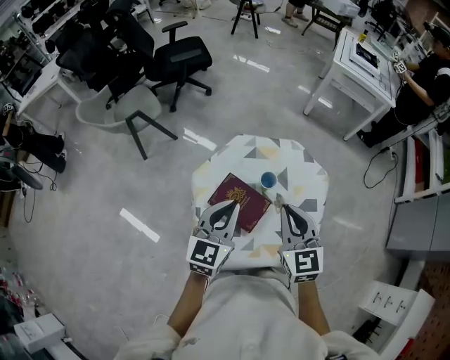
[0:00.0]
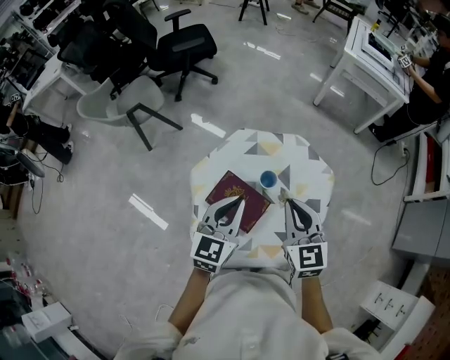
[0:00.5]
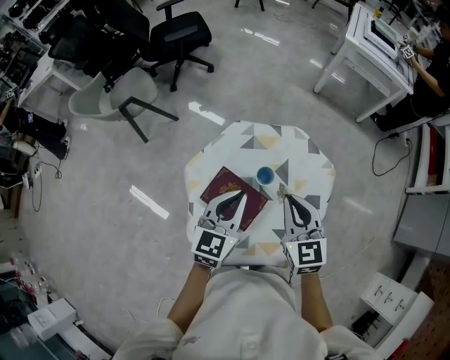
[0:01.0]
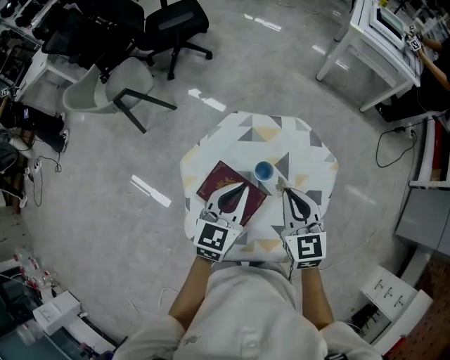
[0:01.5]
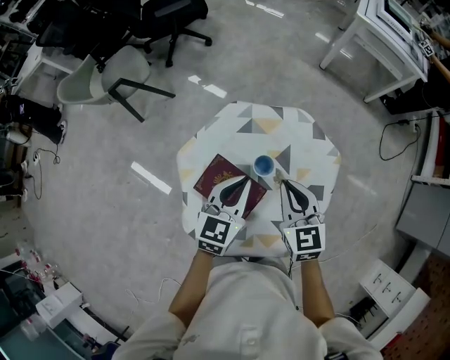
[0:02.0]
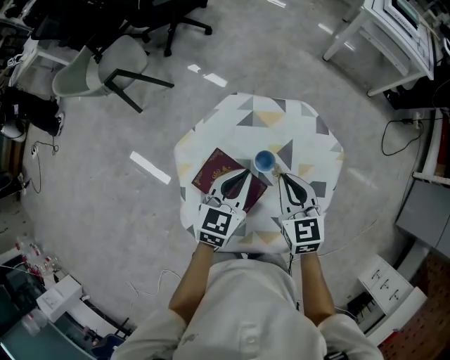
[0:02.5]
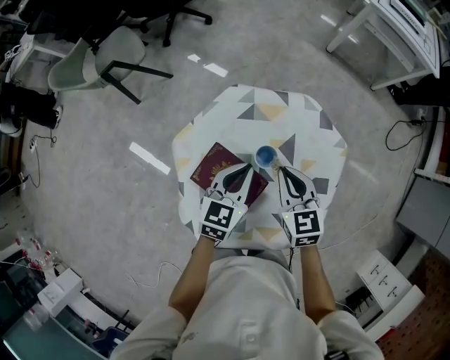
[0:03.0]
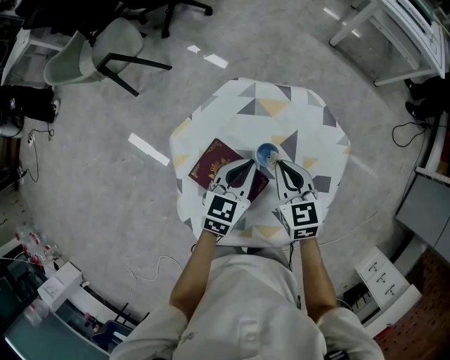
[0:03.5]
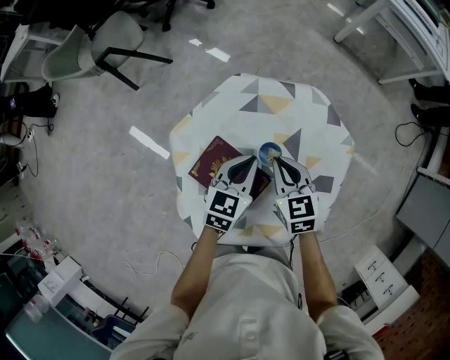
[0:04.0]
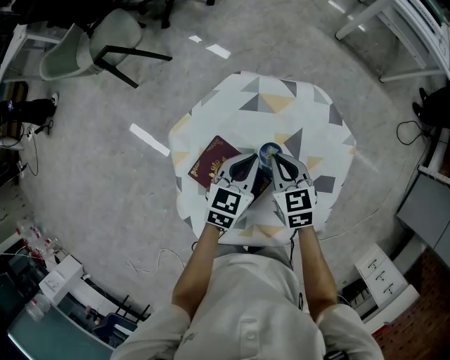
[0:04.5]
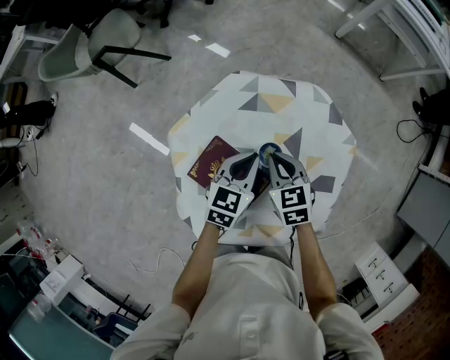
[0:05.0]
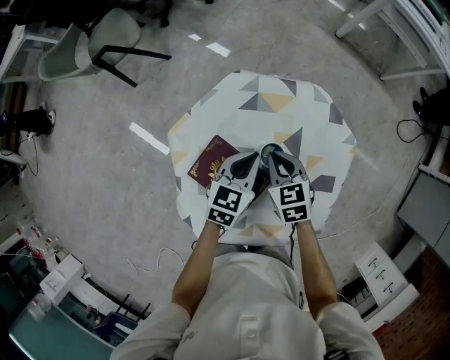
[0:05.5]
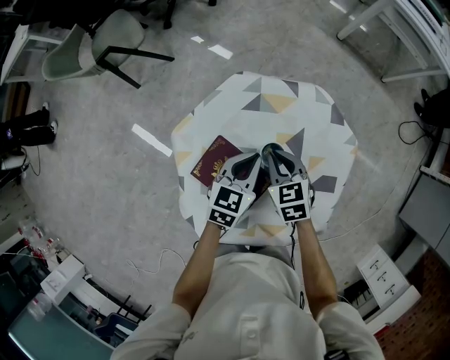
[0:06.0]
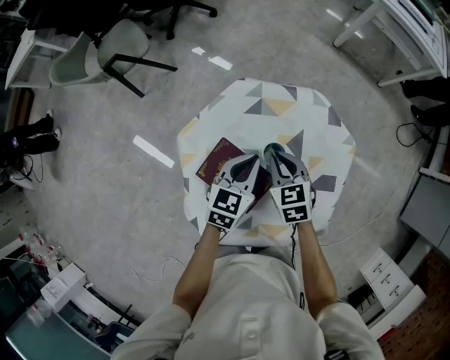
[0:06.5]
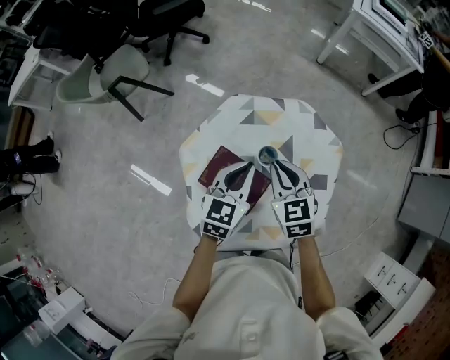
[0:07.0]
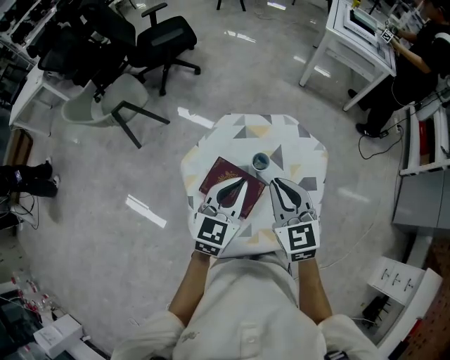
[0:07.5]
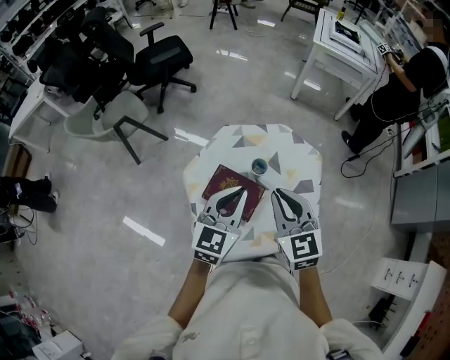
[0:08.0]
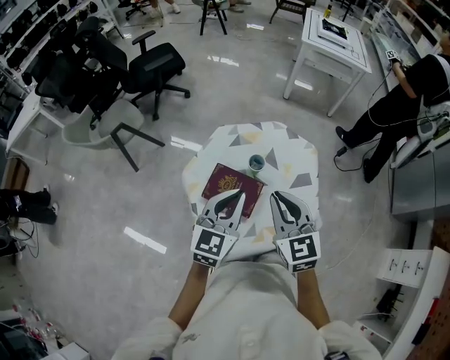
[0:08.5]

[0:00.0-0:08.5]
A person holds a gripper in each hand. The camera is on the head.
0:00.0 to 0:02.0: The right gripper is displaced downward and forward by roughly 15 cm. Meanwhile the left gripper goes some 15 cm downward, forward and to the right.
0:02.0 to 0:04.0: Both grippers move downward, roughly 10 cm.
0:04.0 to 0:06.5: There are only small adjustments of the grippers.
0:06.5 to 0:08.5: The grippers both shift upward and backward by some 30 cm. The right gripper turns by roughly 30 degrees. Meanwhile the left gripper changes its angle by about 30 degrees.

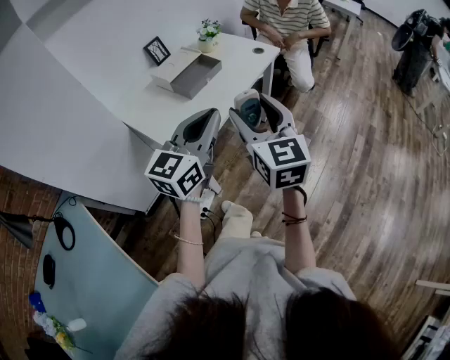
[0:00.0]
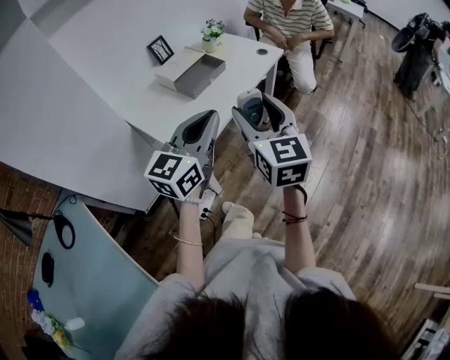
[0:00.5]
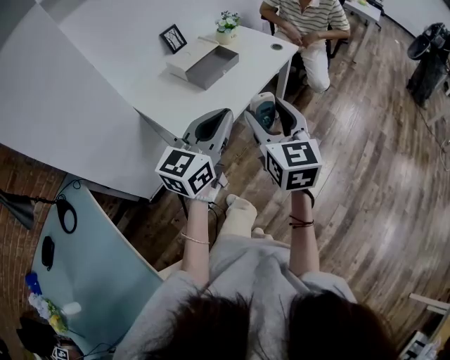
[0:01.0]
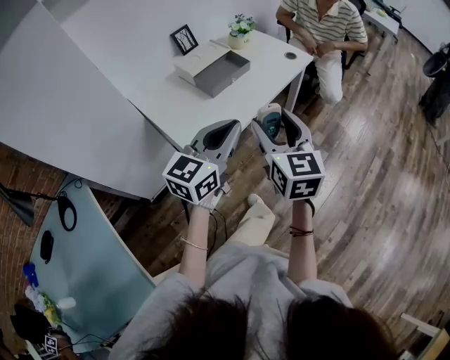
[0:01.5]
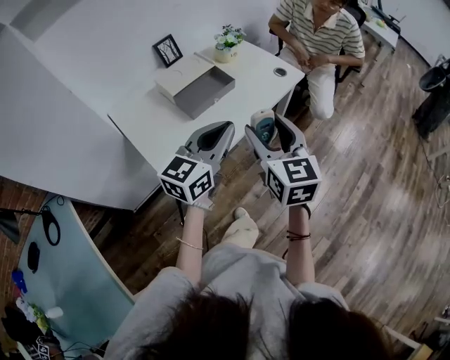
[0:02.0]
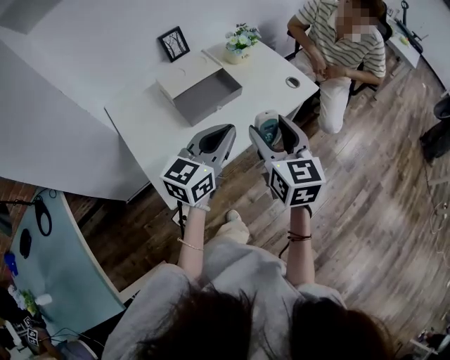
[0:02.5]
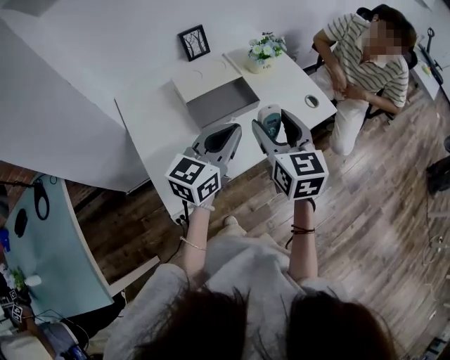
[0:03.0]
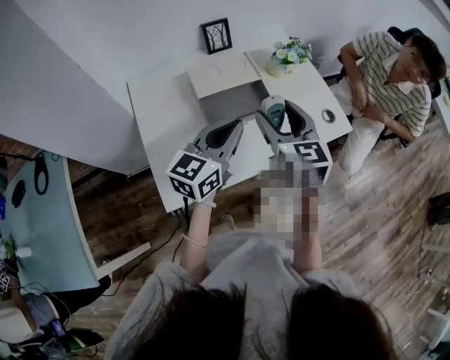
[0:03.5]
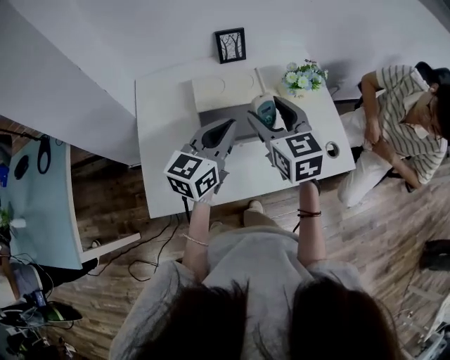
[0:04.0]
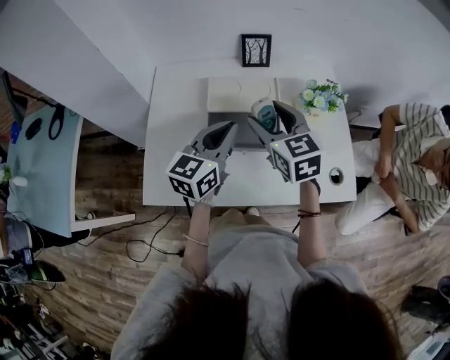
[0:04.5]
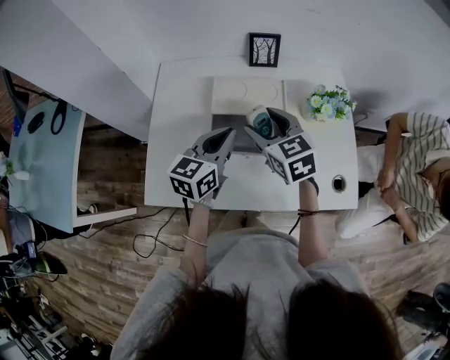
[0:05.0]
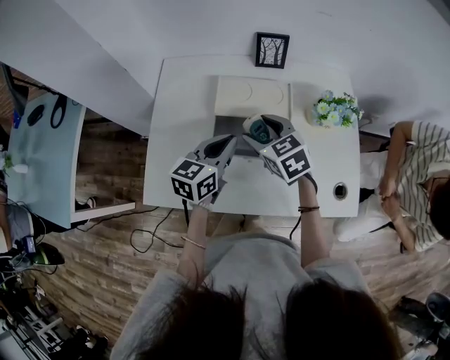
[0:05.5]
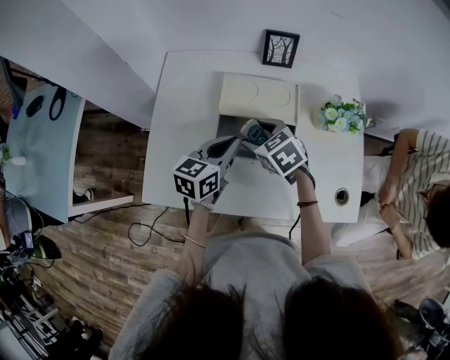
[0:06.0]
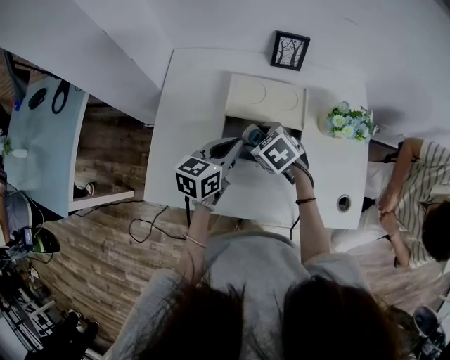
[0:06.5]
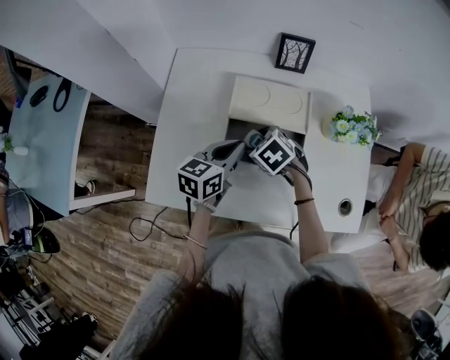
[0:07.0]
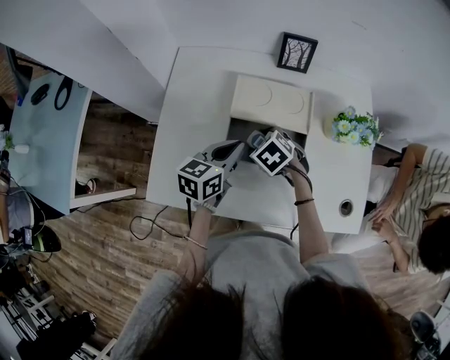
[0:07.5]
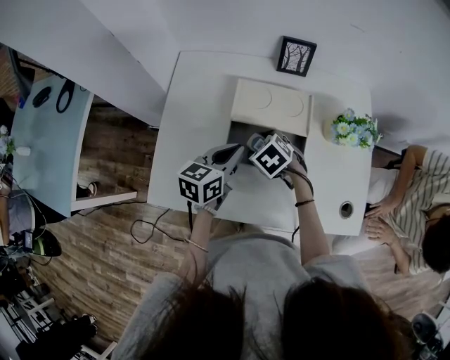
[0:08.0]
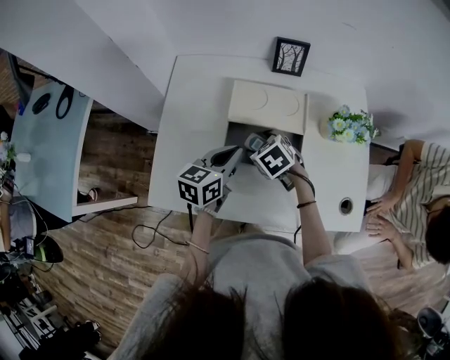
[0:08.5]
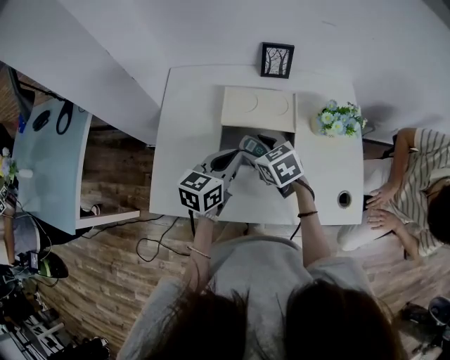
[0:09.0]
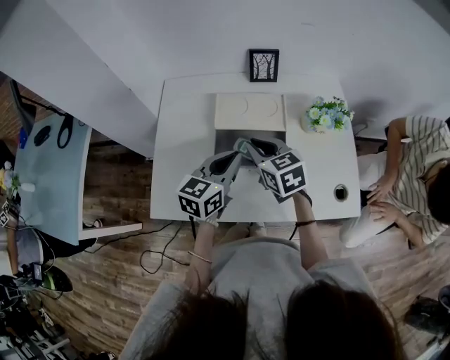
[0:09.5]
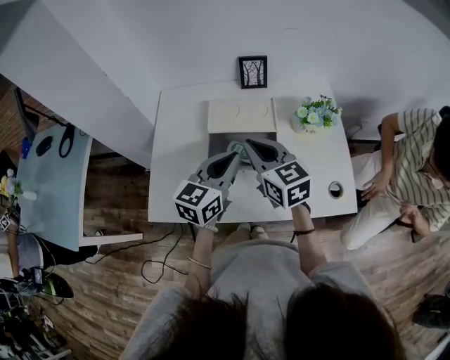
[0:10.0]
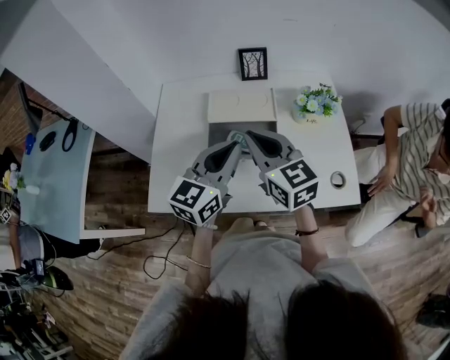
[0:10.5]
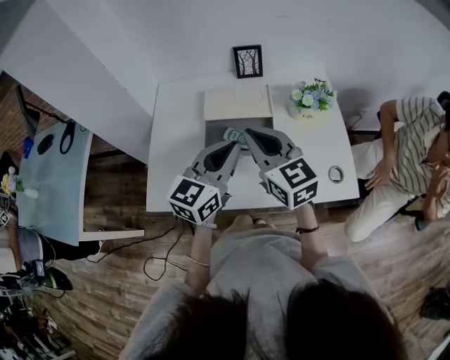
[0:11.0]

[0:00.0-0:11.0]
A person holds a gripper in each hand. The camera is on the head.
0:00.0 to 0:02.0: The grippers both shift forward by roughly 15 cm.
0:02.0 to 0:03.5: Both grippers travel together forward, approximately 20 cm. The right gripper turns by some 20 degrees. The left gripper turns by some 20 degrees.
0:03.5 to 0:05.5: The left gripper changes place by approximately 15 cm, and rotates some 30 degrees; the right gripper shifts by approximately 20 cm, and changes its angle by some 50 degrees.
0:05.5 to 0:07.5: The right gripper shifts about 10 cm downward, and changes its angle by approximately 30 degrees; the left gripper shifts by roughly 5 cm.
0:07.5 to 0:09.0: The right gripper travels upward by roughly 5 cm, and changes its angle by about 30 degrees.
0:09.0 to 0:11.0: The left gripper moves upward, backward and to the right, approximately 15 cm, and changes its angle by about 20 degrees; the right gripper is displaced upward and backward by roughly 20 cm, angles its fingers upward, by some 40 degrees, and closes its fingers.

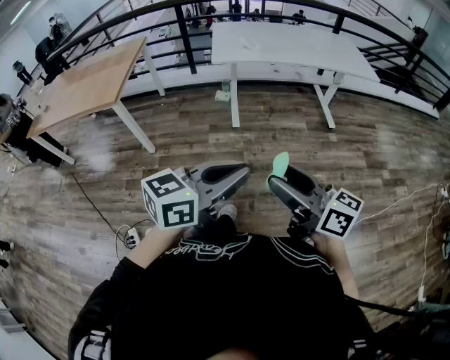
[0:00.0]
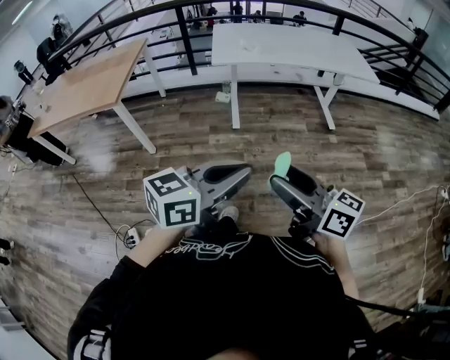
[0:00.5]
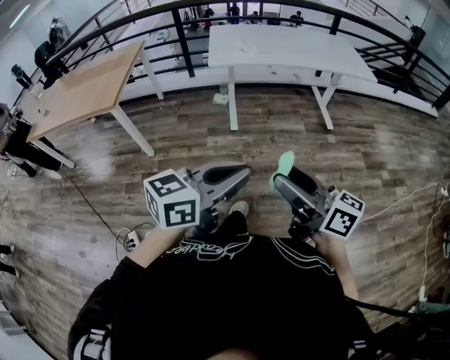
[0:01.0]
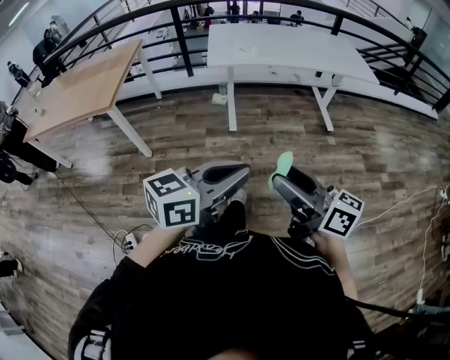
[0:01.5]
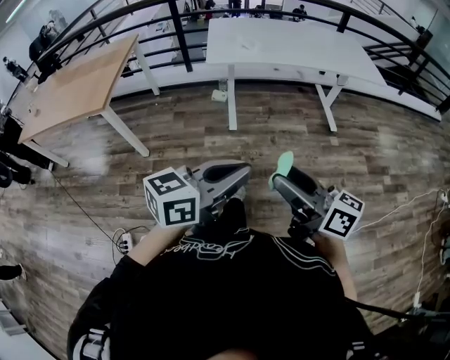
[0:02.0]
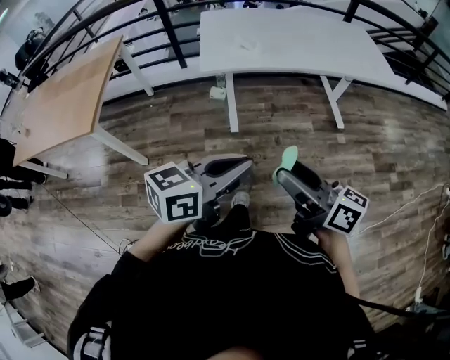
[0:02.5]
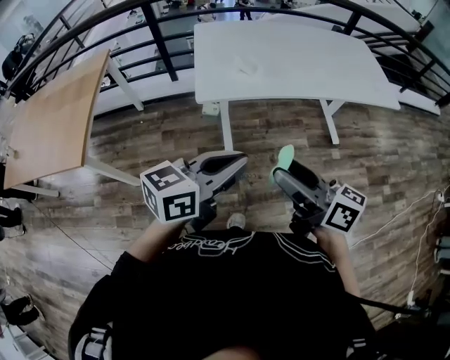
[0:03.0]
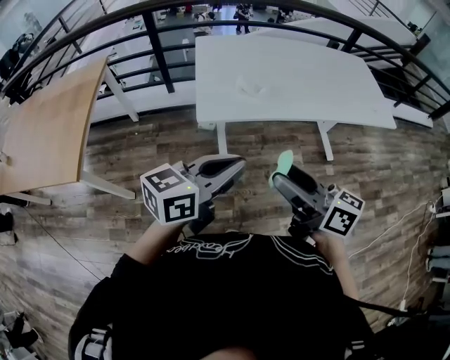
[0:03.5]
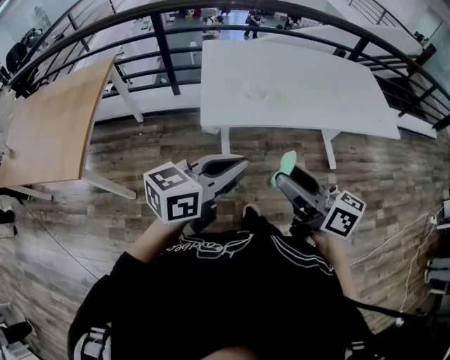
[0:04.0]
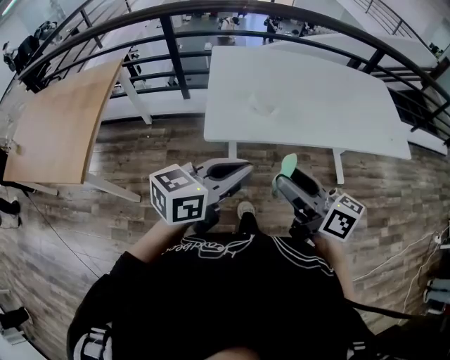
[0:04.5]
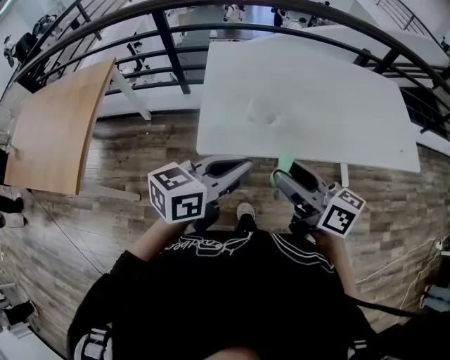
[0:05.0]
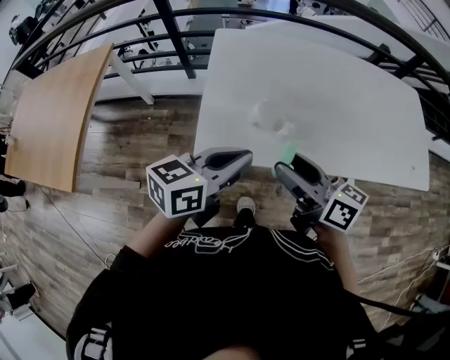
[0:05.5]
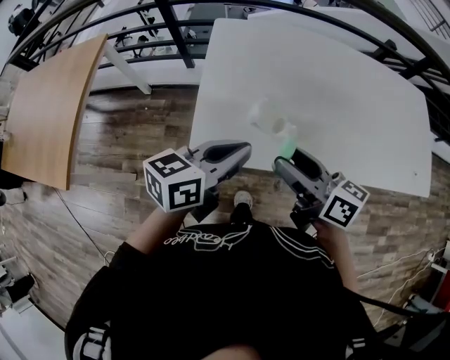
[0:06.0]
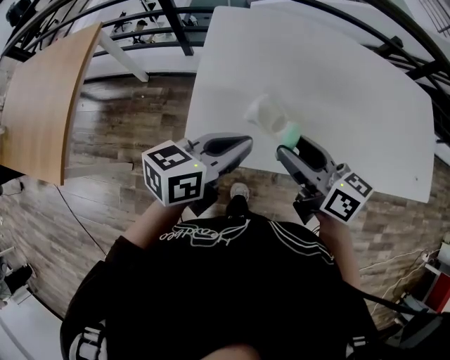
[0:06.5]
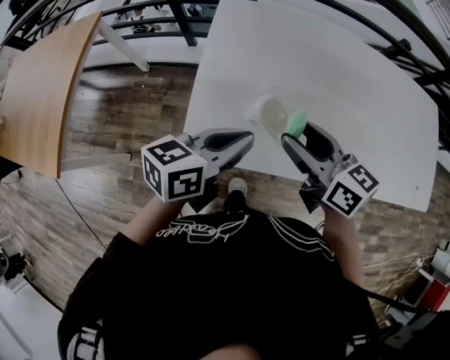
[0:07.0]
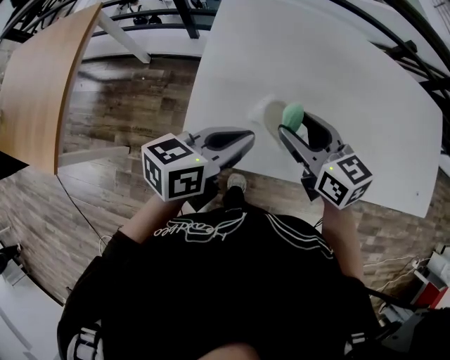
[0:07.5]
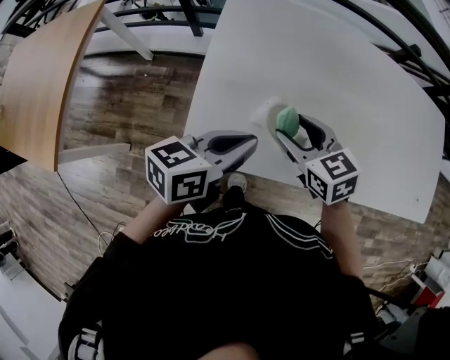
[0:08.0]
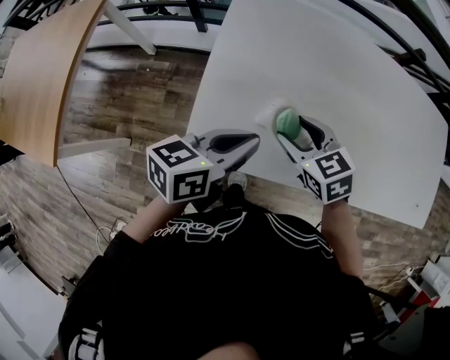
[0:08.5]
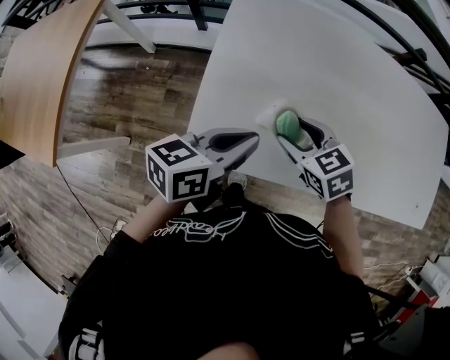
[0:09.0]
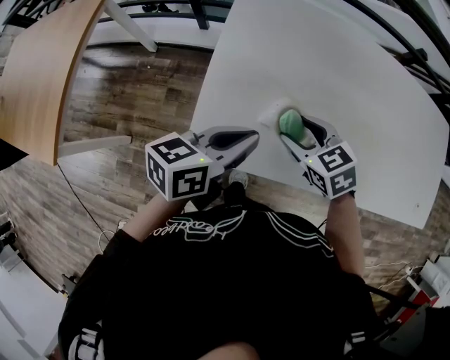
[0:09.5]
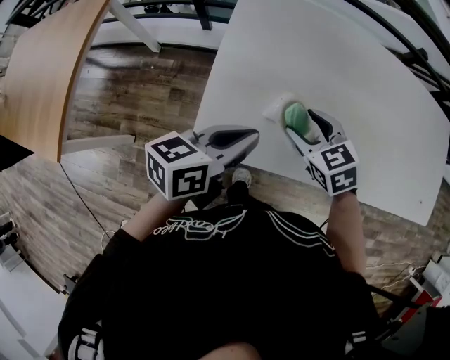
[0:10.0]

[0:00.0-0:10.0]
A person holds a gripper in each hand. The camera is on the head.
0:00.0 to 0:02.0: Both grippers move forward, some 10 cm.
0:02.0 to 0:04.0: The two grippers travel together, forward, roughly 40 cm.
0:04.0 to 0:06.0: The grippers both shift forward by roughly 35 cm.
0:06.0 to 0:08.0: The right gripper travels downward and forward by approximately 15 cm, and swivels about 40 degrees. Meanwhile the left gripper moves downward and forward, some 10 cm.
0:08.0 to 0:10.0: The grippers make only small movements.
